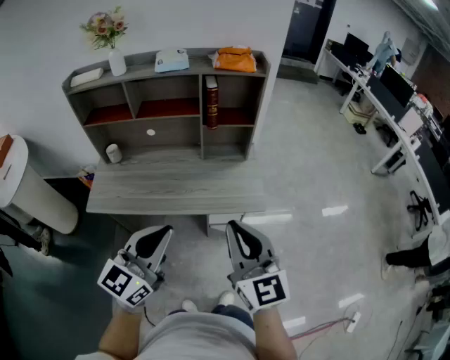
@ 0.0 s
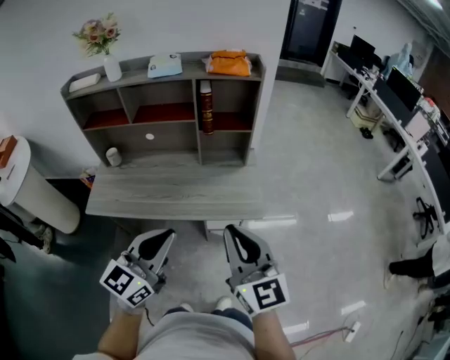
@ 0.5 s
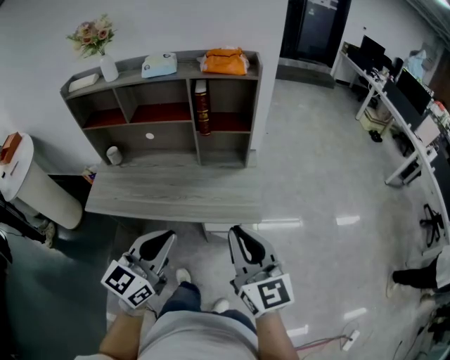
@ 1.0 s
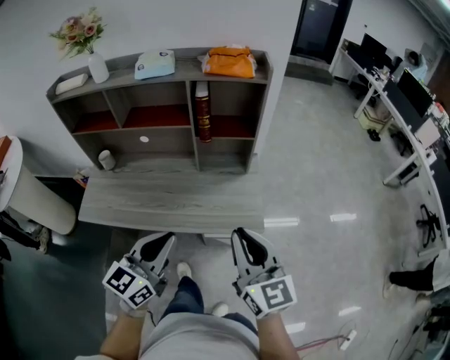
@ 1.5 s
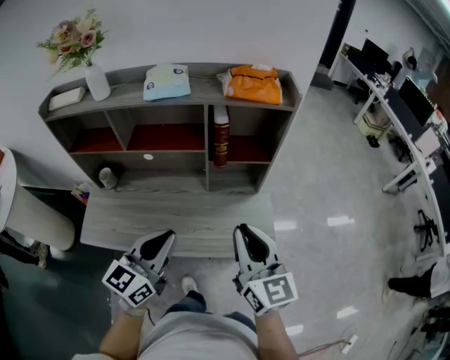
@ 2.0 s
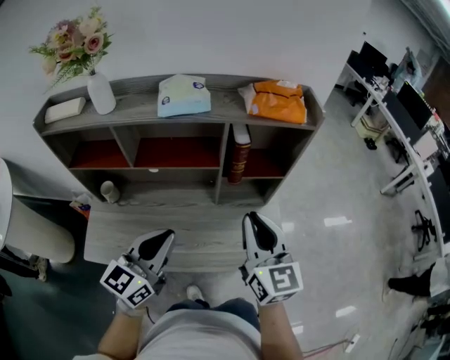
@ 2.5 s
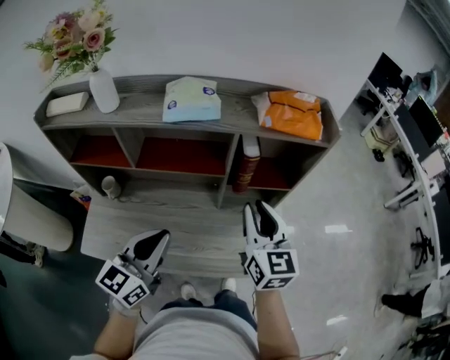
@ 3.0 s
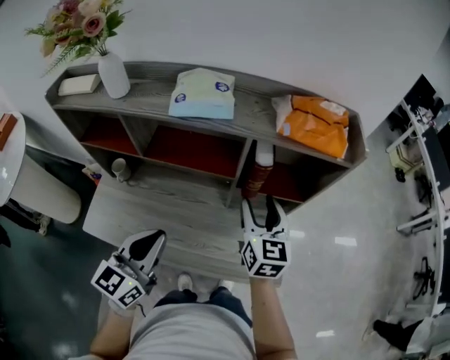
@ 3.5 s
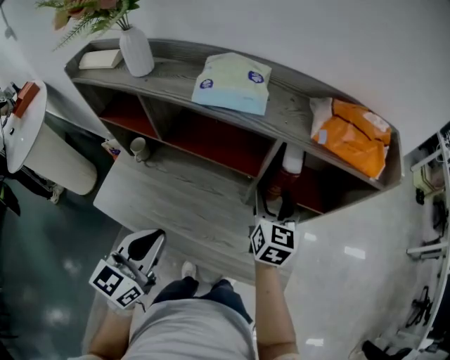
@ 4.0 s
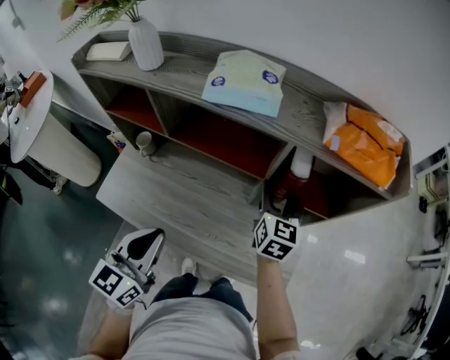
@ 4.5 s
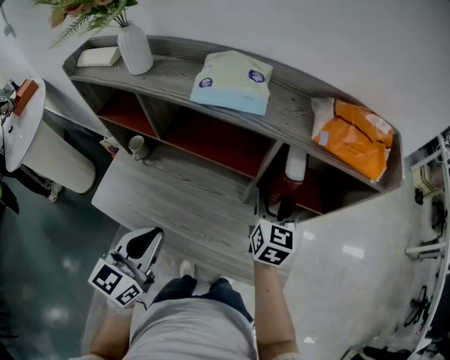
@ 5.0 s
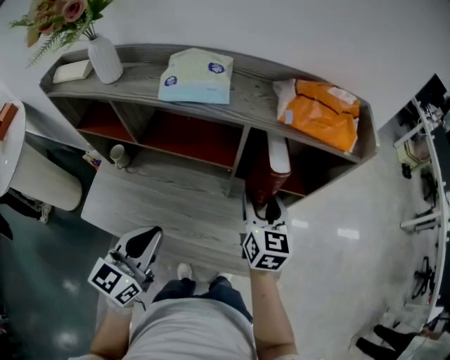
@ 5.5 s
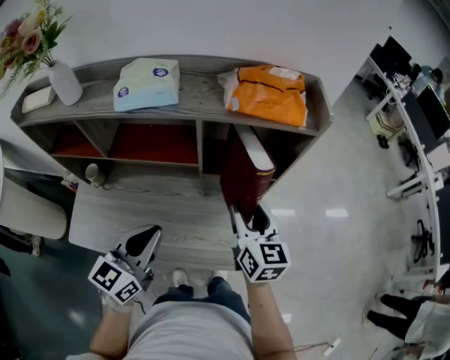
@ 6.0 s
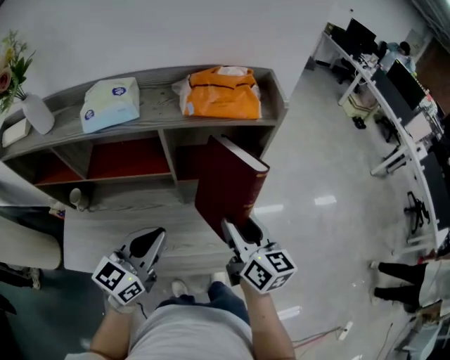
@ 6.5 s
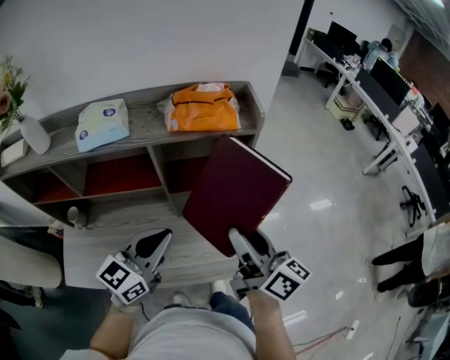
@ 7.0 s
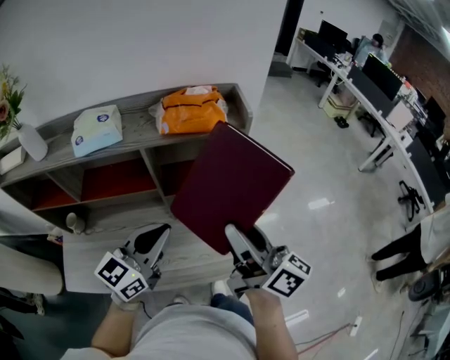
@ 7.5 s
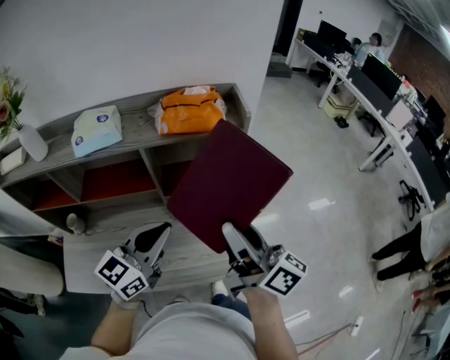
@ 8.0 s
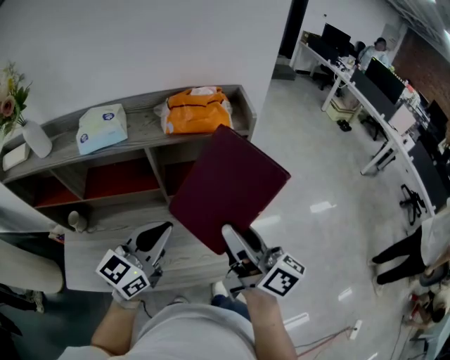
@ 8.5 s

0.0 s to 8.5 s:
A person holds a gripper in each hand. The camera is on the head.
0.0 to 2.0 s: The grippers stay close to where they were, moving slightly.
2.0 to 4.0 s: The left gripper moves to the left and forward, about 10 cm, and swivels approximately 20 degrees; the right gripper moves forward, about 30 cm, and opens its fingers.
4.0 to 6.5 s: The right gripper goes some 20 cm backward and to the right, and changes its angle by approximately 30 degrees; the left gripper goes roughly 15 cm to the right, and swivels about 30 degrees.
6.5 to 8.5 s: The right gripper moves upward, roughly 10 cm, and changes its angle by roughly 30 degrees. Meanwhile the left gripper heads upward, covering some 5 cm.

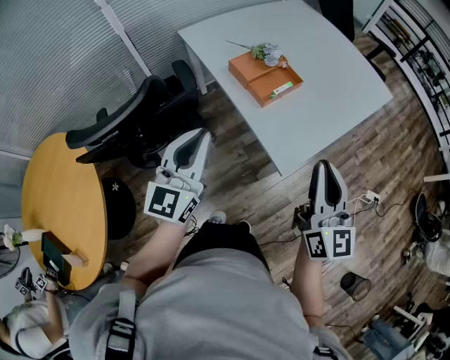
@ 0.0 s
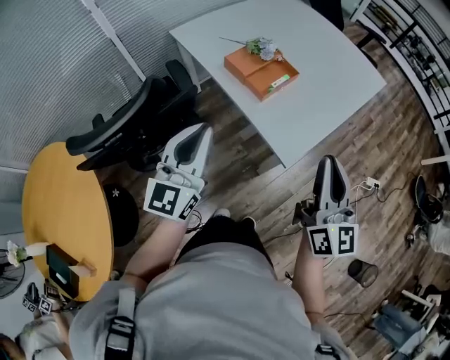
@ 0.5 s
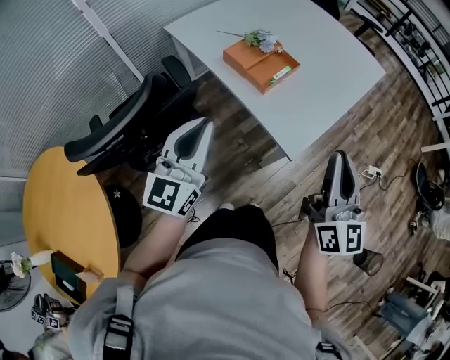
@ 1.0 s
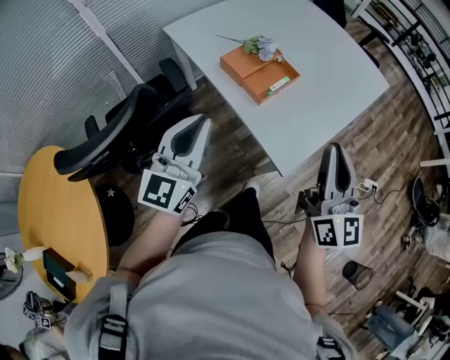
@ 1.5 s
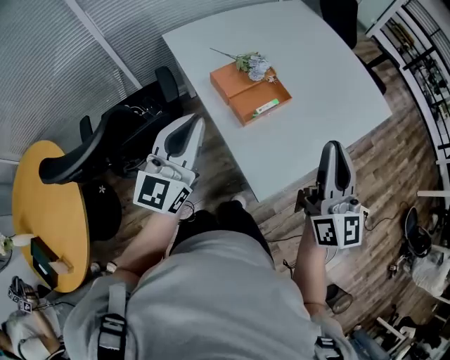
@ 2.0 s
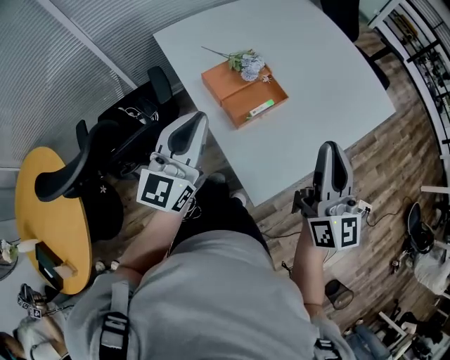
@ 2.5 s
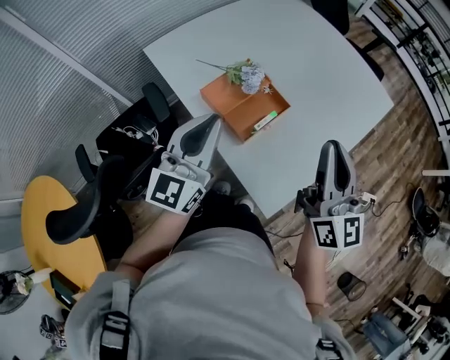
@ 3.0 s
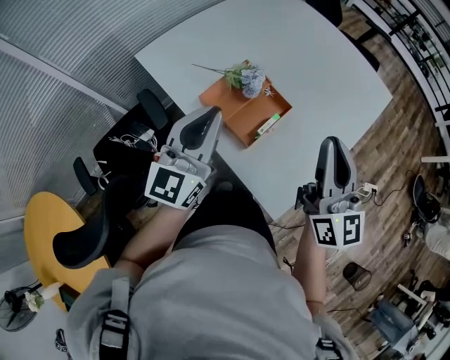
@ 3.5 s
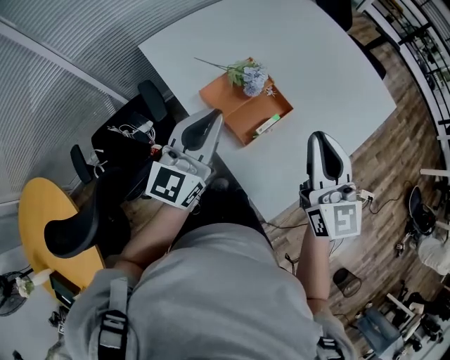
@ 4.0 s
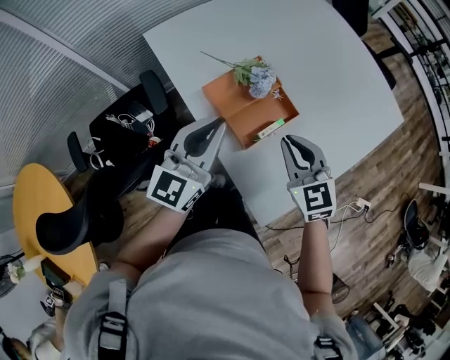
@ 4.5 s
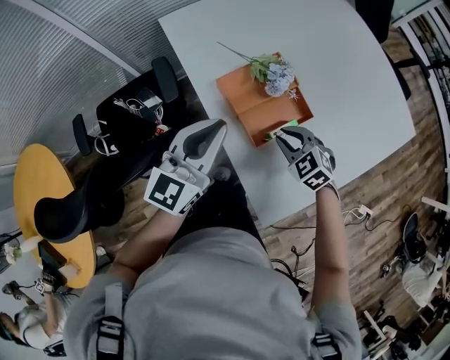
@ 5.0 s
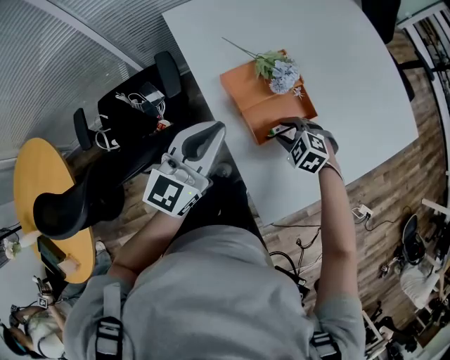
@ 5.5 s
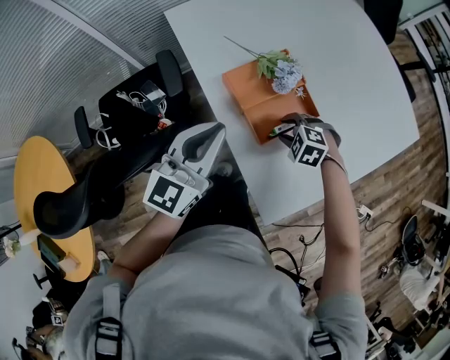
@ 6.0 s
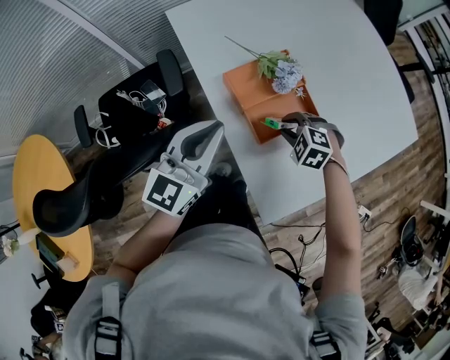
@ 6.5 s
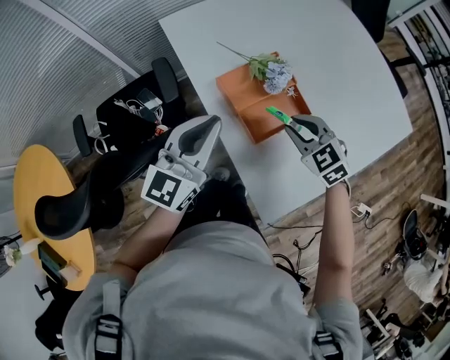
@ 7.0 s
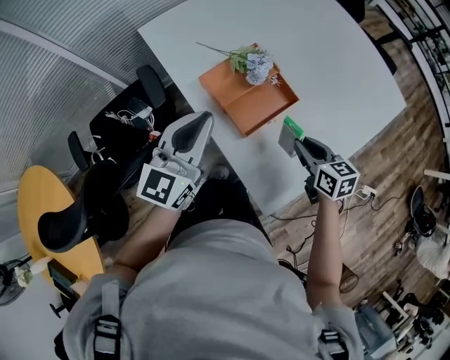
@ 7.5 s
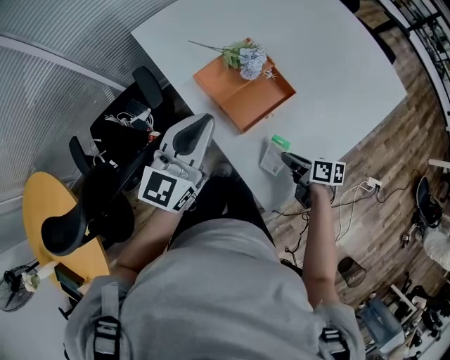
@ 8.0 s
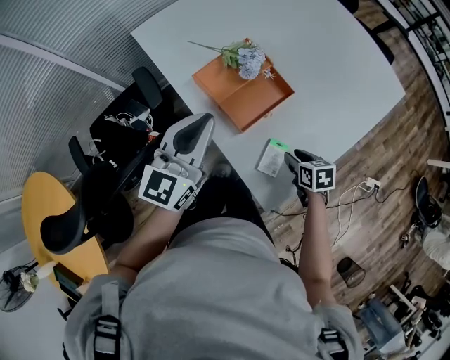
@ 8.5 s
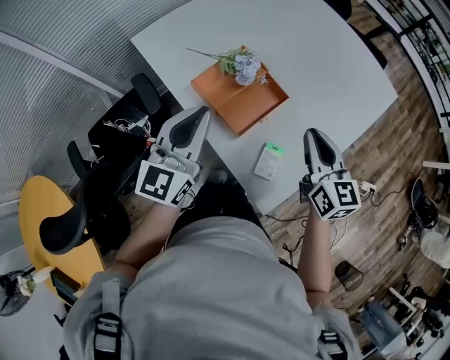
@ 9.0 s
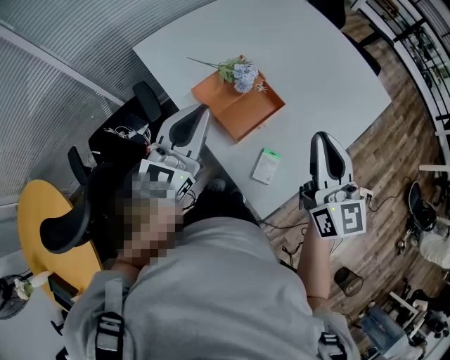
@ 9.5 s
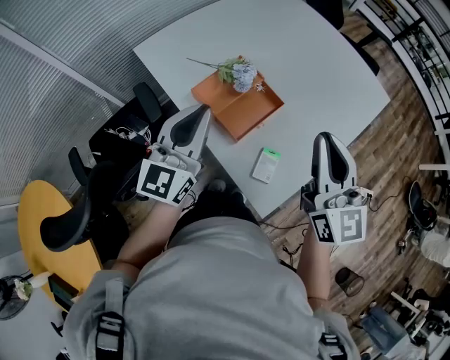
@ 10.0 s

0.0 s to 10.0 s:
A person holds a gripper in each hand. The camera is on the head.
0.0 to 2.0 s: The grippers both shift forward by roughly 20 cm.
2.0 to 4.0 s: The left gripper shifts roughly 20 cm forward. Meanwhile the right gripper travels forward and to the left by approximately 15 cm.
4.0 to 6.0 s: The right gripper travels downward by about 35 cm, tips its fingers downward by approximately 70 degrees, and opens its fingers. Meanwhile the left gripper moves downward, about 5 cm.
6.0 to 8.0 s: The right gripper moves backward and to the right, about 15 cm, and twists roughly 100 degrees clockwise, seen from behind.
8.0 to 10.0 s: The right gripper travels upward by about 35 cm, and points its fingers about 40 degrees further upward. Meanwhile the left gripper travels upward by approximately 5 cm.

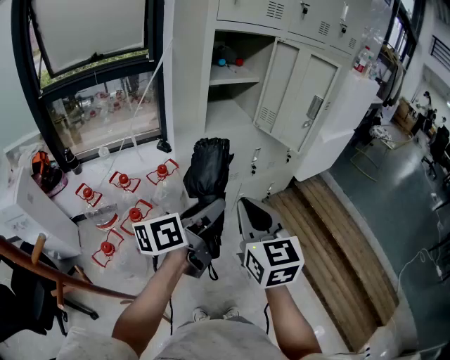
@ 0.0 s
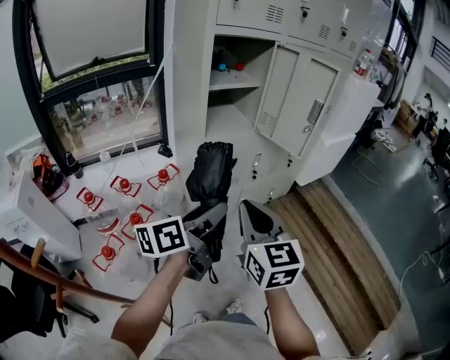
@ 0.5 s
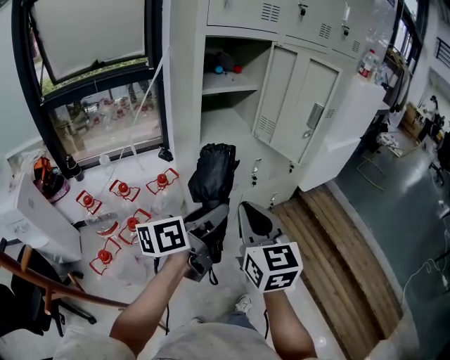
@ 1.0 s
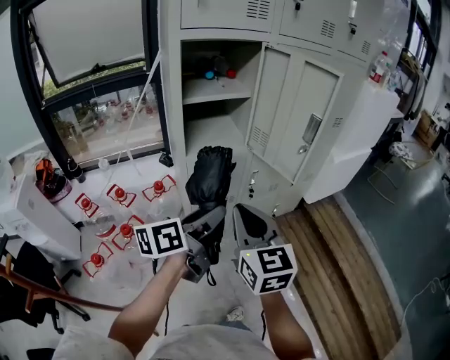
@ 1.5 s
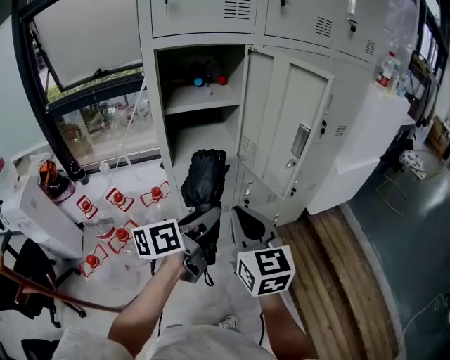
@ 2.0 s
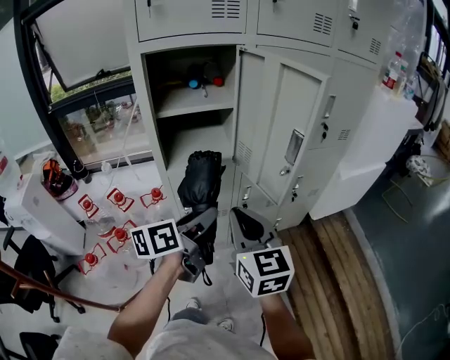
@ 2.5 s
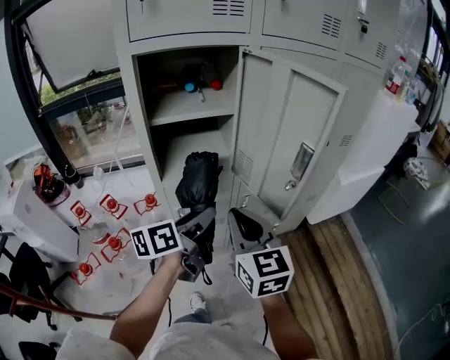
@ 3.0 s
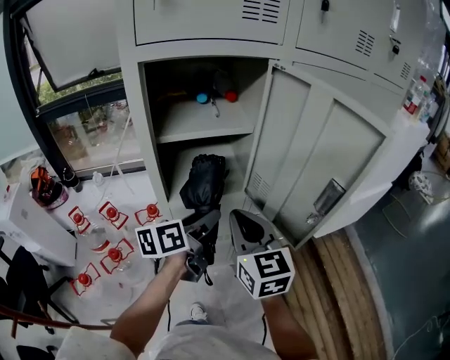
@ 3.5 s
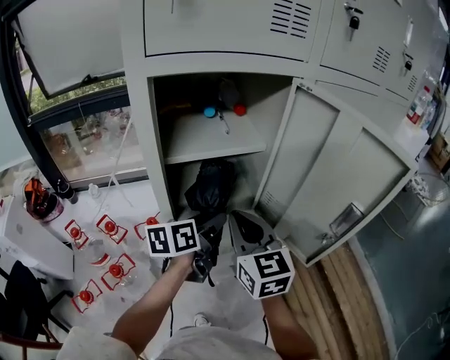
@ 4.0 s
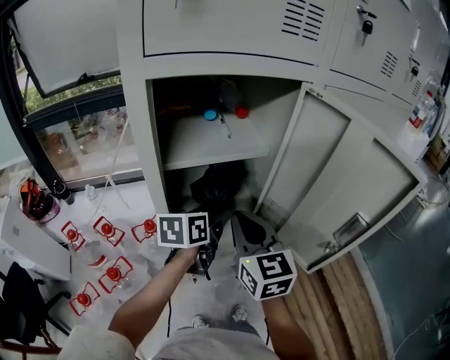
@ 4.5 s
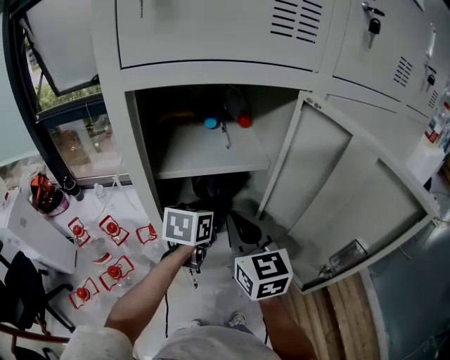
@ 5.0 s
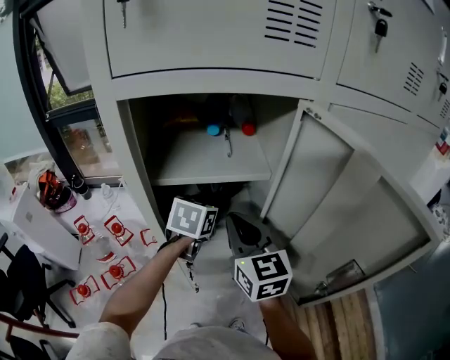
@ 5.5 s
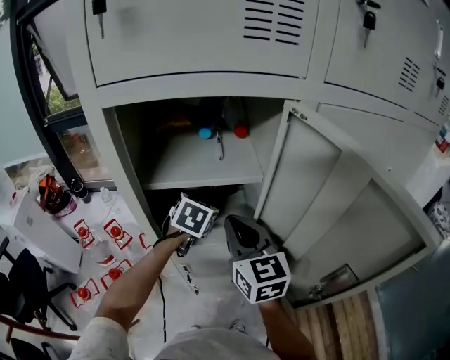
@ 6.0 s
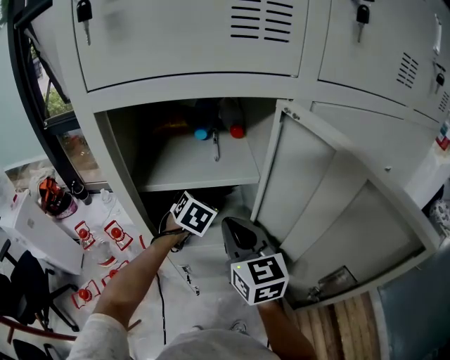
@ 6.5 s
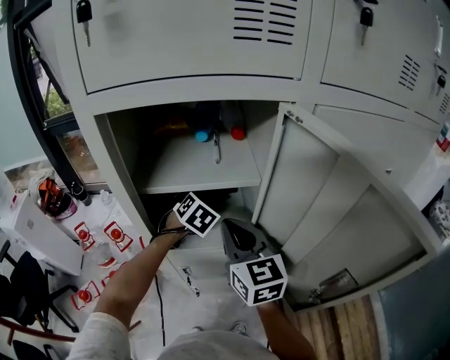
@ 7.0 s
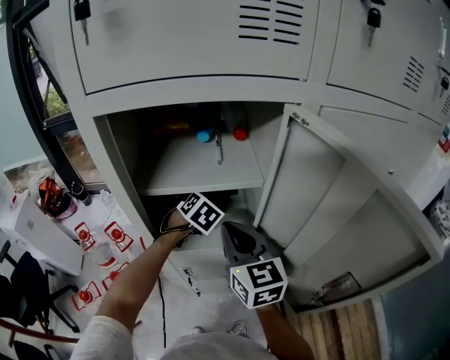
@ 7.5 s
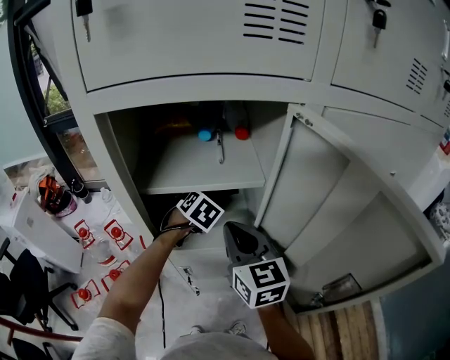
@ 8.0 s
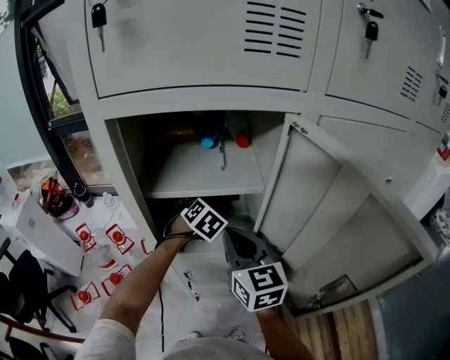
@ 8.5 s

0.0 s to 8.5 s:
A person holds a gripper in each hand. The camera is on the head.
0.0 to 2.0 s: The two grippers go roughly 25 cm forward and to the right.
2.0 to 4.0 s: The grippers both shift forward by roughly 20 cm.
4.0 to 6.5 s: The left gripper shifts about 15 cm forward, and twists roughly 50 degrees clockwise, seen from behind, while the right gripper heads forward, covering approximately 10 cm.
6.5 to 8.5 s: There are only small adjustments of the grippers.
